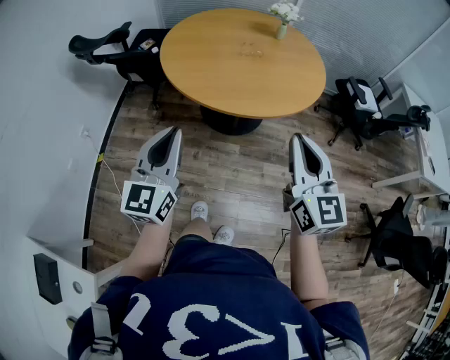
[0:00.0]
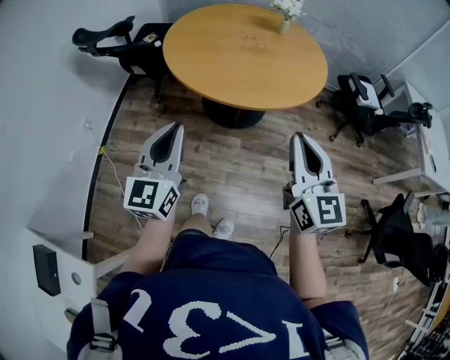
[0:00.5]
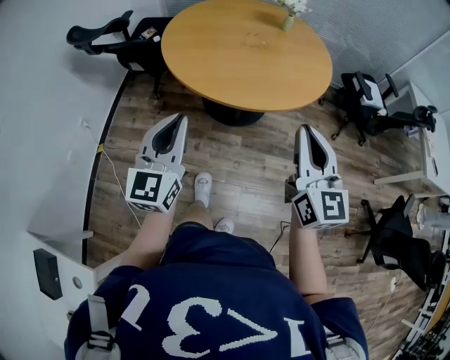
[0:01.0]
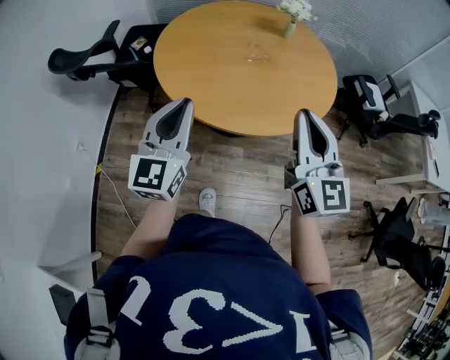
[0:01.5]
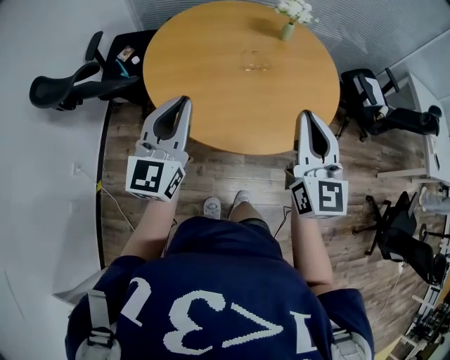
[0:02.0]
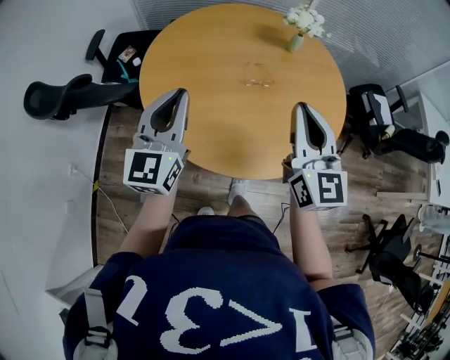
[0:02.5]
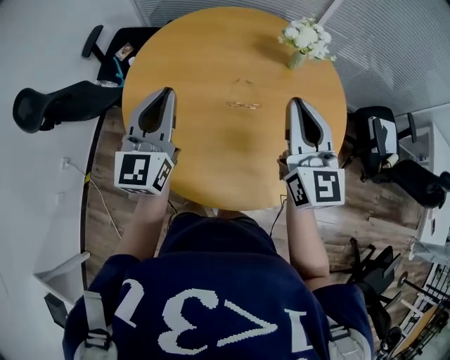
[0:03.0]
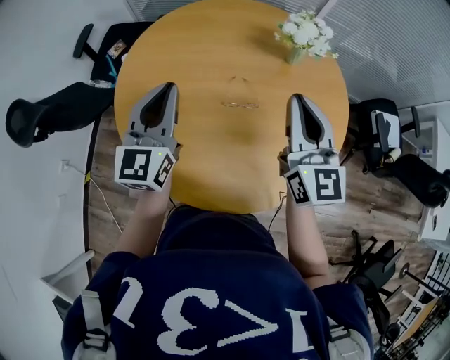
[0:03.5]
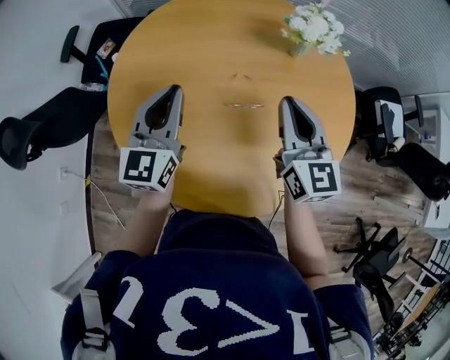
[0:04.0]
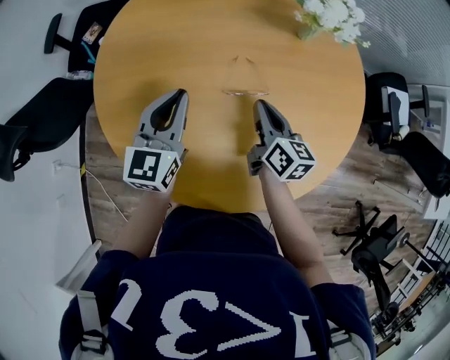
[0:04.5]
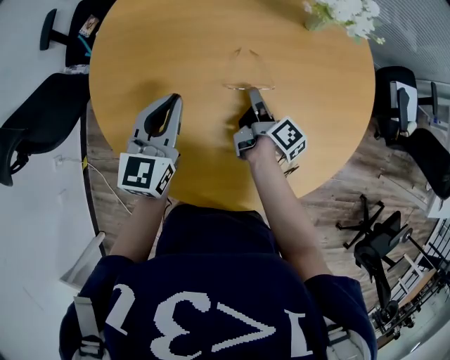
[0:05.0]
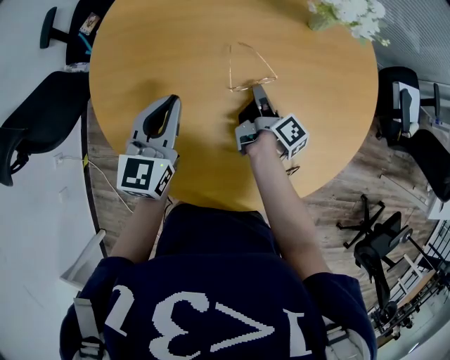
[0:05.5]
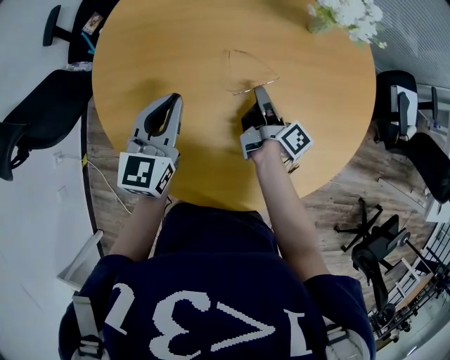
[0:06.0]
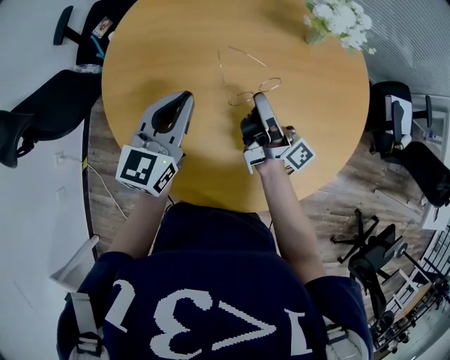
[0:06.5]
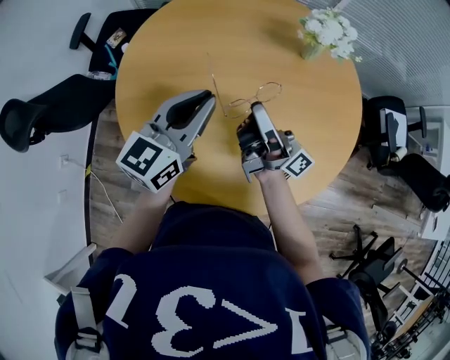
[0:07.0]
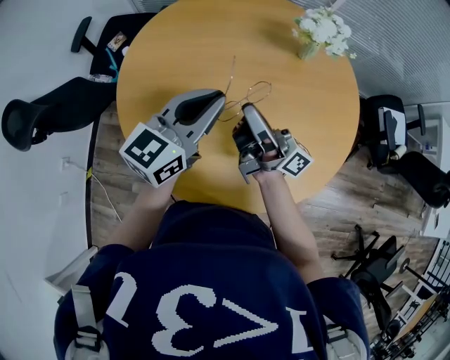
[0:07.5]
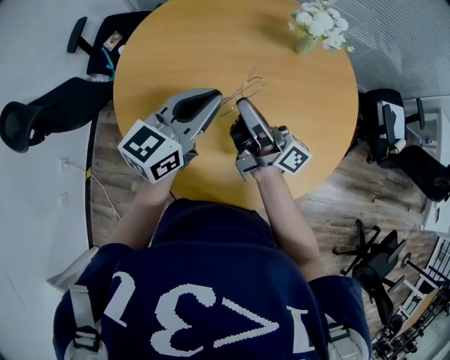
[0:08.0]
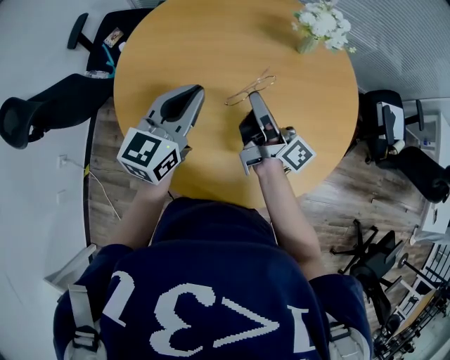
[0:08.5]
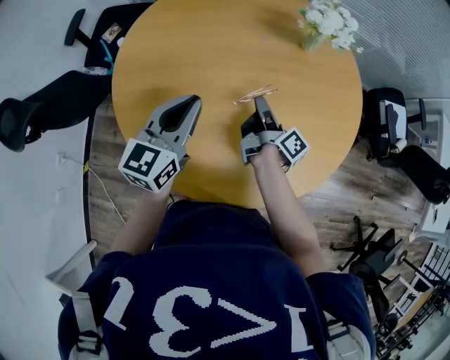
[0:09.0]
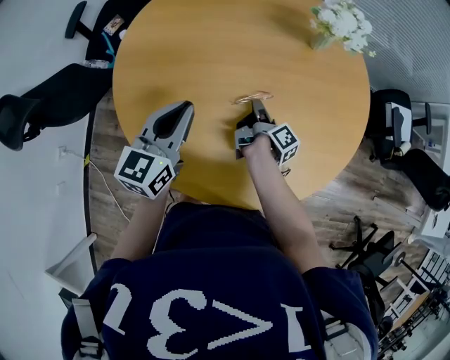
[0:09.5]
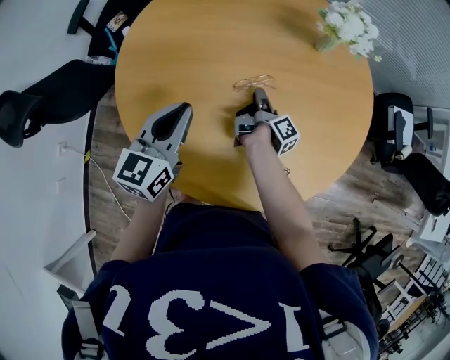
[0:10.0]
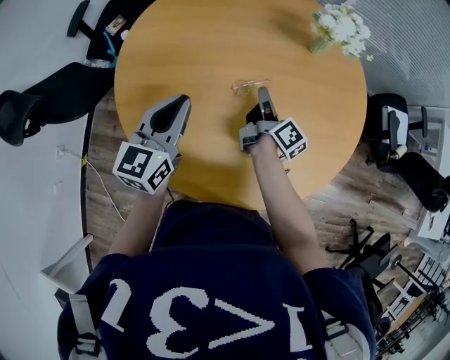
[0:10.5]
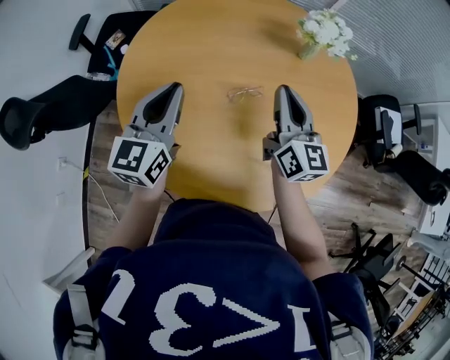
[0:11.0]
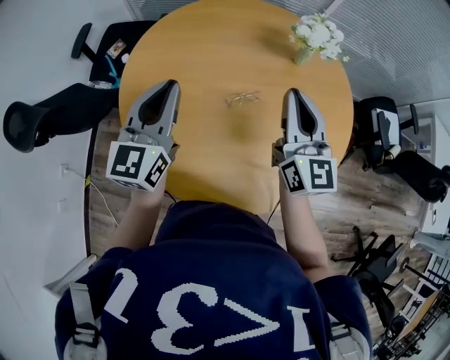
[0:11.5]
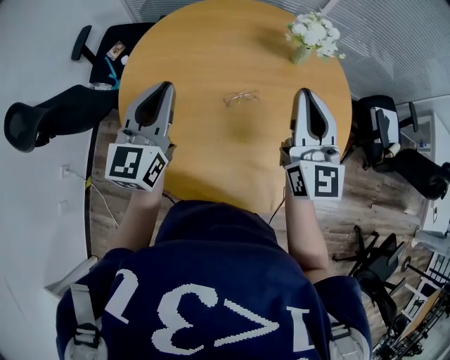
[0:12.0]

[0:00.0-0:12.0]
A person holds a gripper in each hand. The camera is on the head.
0:00.0 to 0:02.0: The grippers both shift forward by approximately 30 cm.
0:02.0 to 0:04.0: The grippers both shift forward by some 35 cm.
0:04.0 to 0:06.0: The left gripper travels downward by some 10 cm. Meanwhile the right gripper shifts roughly 25 cm downward, and twists about 80 degrees clockwise, seen from behind.
0:06.0 to 0:08.0: The left gripper shifts approximately 15 cm upward and to the right, and changes its angle by roughly 20 degrees. Meanwhile the right gripper shifts about 20 cm upward, and tips its fingers upward by roughly 40 degrees.
0:08.0 to 0:10.0: The left gripper is displaced to the left and downward by approximately 10 cm; the right gripper shifts roughly 25 cm downward, and angles its fingers downward, by some 40 degrees.
0:10.0 to 0:12.0: The left gripper travels upward by roughly 10 cm; the right gripper goes about 35 cm upward, and rolls counterclockwise, seen from behind, by some 100 degrees.

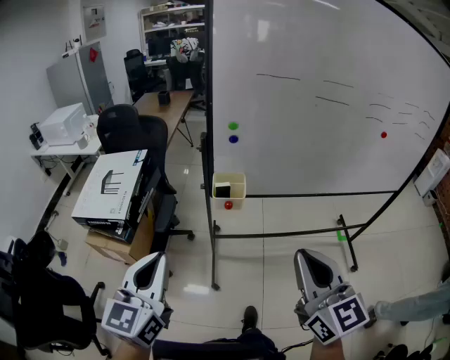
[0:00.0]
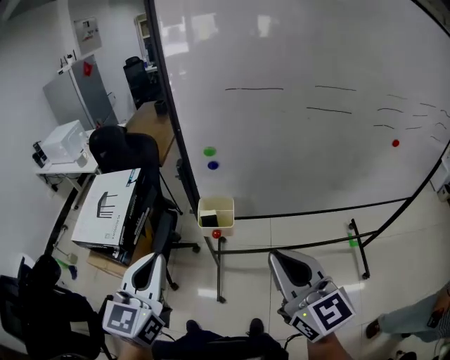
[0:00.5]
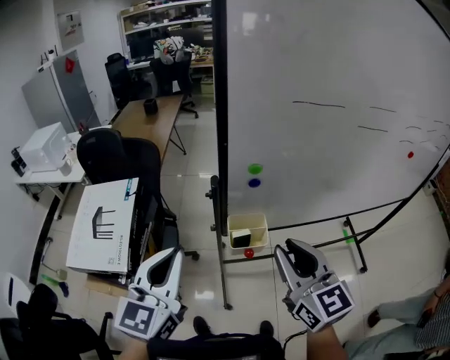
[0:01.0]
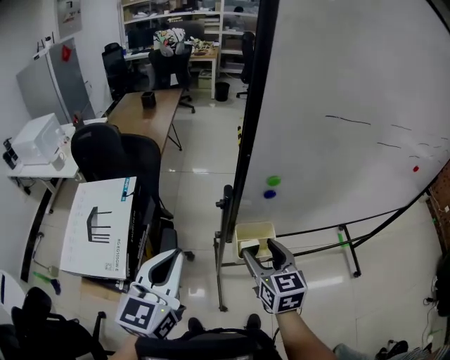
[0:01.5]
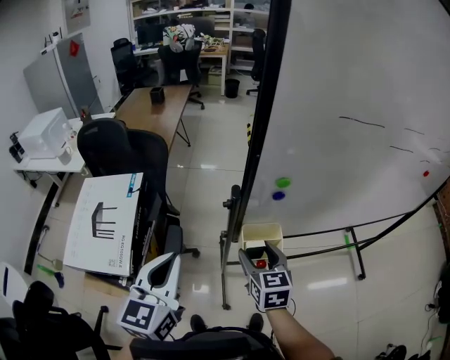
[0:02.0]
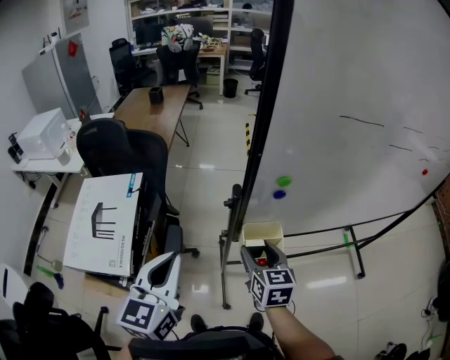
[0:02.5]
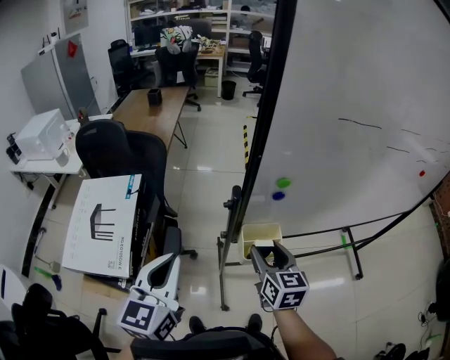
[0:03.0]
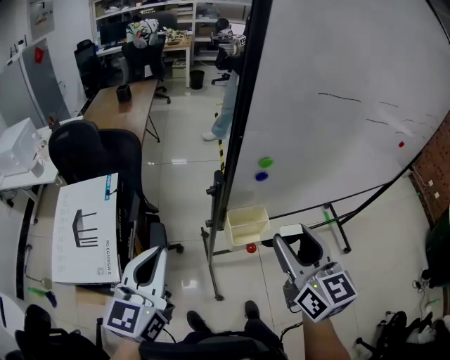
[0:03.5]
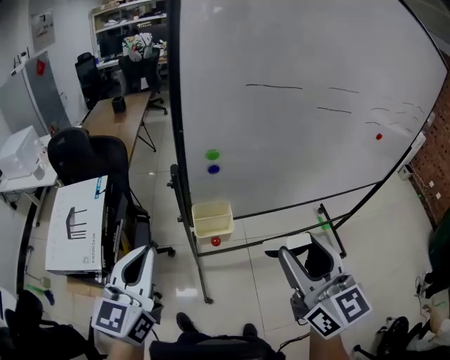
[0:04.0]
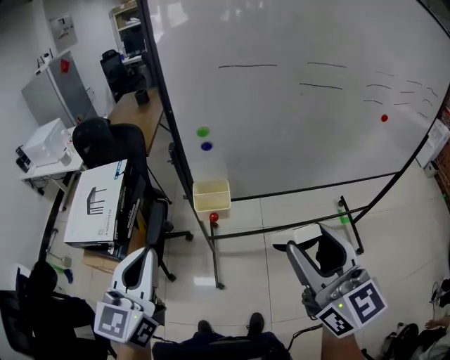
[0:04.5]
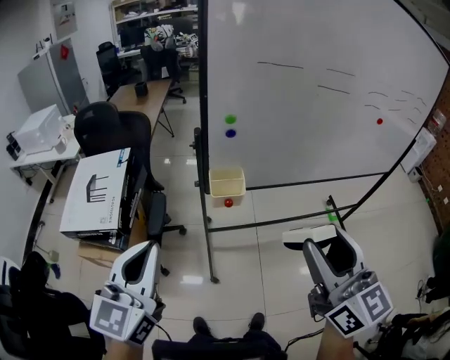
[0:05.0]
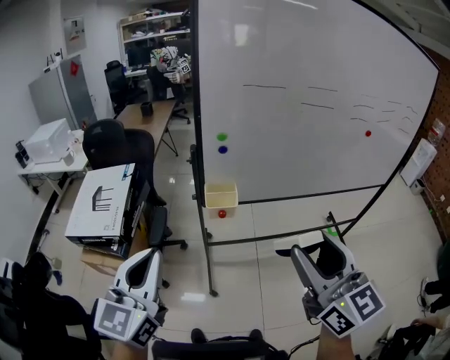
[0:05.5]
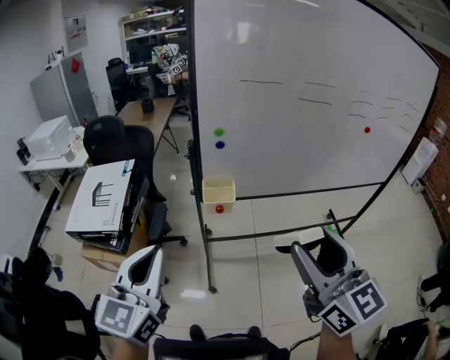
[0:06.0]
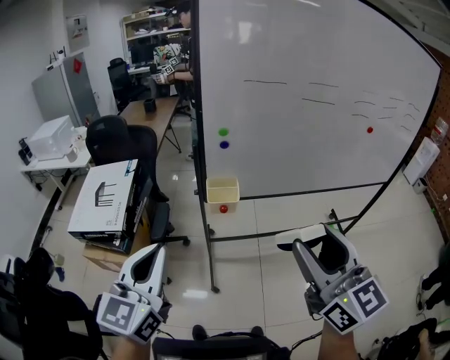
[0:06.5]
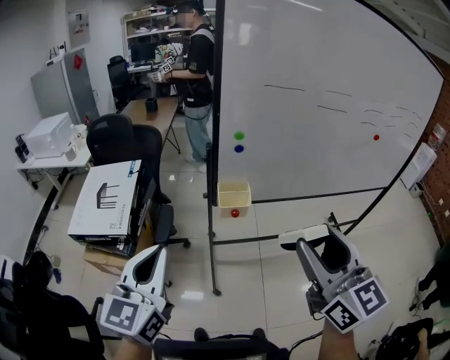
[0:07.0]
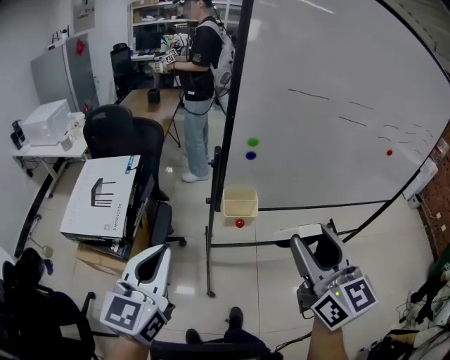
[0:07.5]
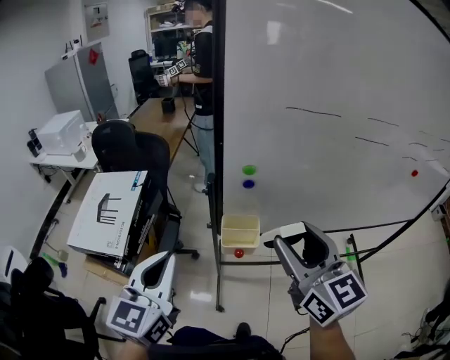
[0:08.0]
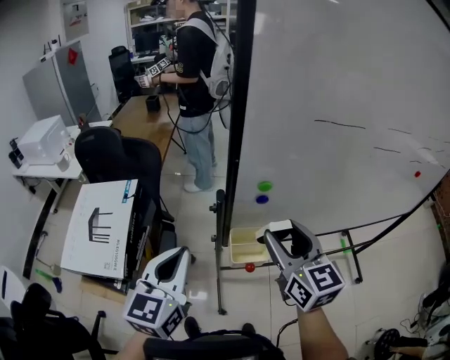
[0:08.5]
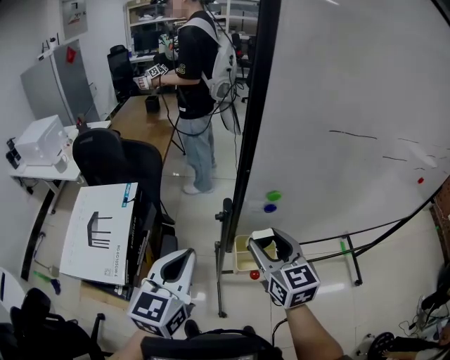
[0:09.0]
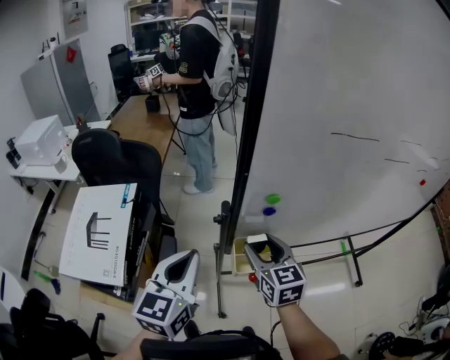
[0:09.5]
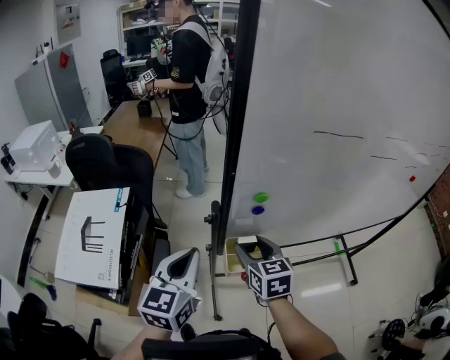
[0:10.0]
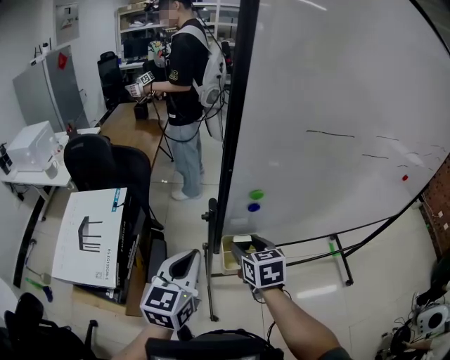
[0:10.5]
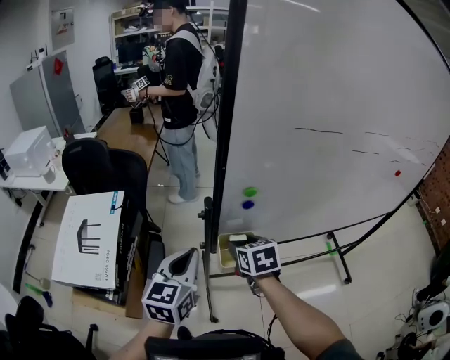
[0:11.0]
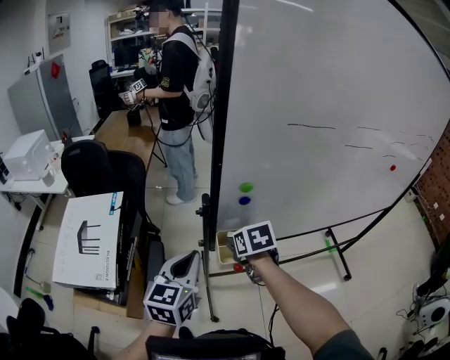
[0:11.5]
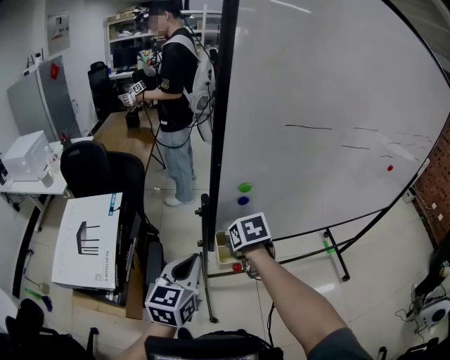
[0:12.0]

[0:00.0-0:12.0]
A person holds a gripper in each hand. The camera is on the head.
0:00.0 to 0:02.0: The left gripper travels forward by roughly 30 cm. The right gripper travels forward, downward and to the left by some 50 cm, changes its angle by some 30 degrees, and opens.
0:02.0 to 0:04.0: The left gripper travels to the right, backward and upward by roughly 10 cm. The right gripper goes roughly 35 cm upward, to the right and backward, and swivels about 20 degrees.
0:04.0 to 0:06.0: The grippers both shift backward by approximately 20 cm.
0:06.0 to 0:08.0: The two grippers go approximately 20 cm forward.
0:08.0 to 0:10.0: The left gripper heads forward and downward, covering roughly 15 cm; the right gripper goes about 30 cm downward, forward and to the left, and turns by approximately 30 degrees.
0:10.0 to 0:12.0: The right gripper points its fingers roughly 30 degrees further downward. Meanwhile the left gripper ends up about 5 cm from where it was.

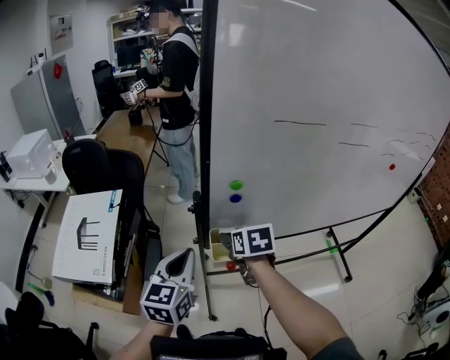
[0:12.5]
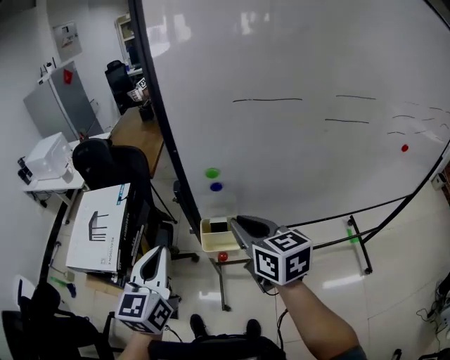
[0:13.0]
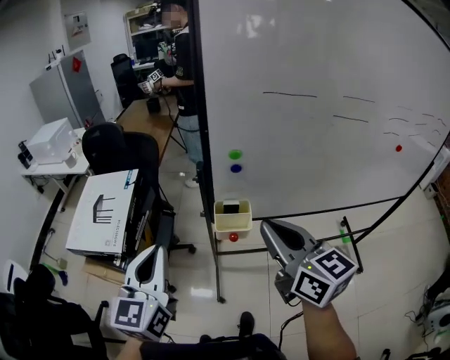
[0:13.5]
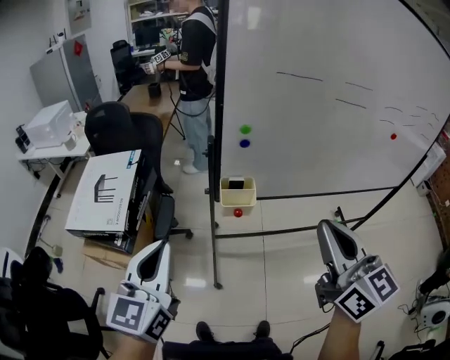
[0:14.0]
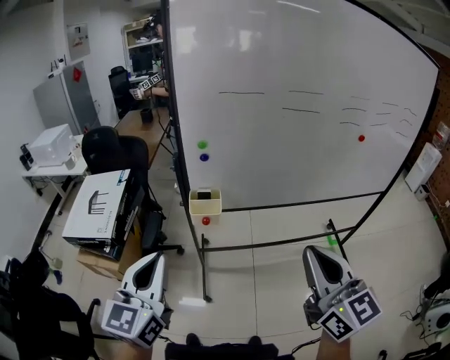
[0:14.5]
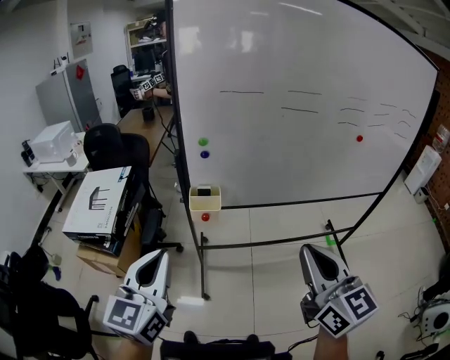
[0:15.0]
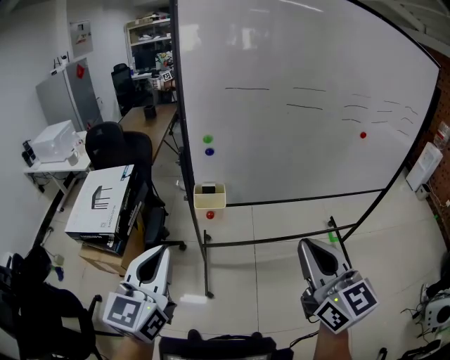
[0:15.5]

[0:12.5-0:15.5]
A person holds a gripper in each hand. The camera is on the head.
0:12.5 to 0:14.0: The right gripper shifts roughly 40 cm backward and upward, tips its fingers upward by roughly 50 degrees, and closes, while the left gripper shifts roughly 20 cm backward and upward.
0:14.0 to 0:15.5: Both grippers move to the right and backward, about 15 cm.
